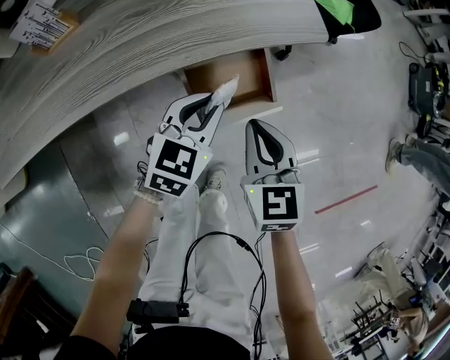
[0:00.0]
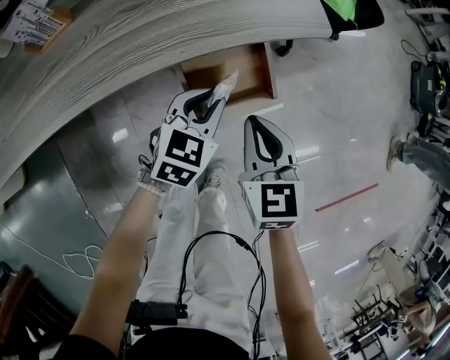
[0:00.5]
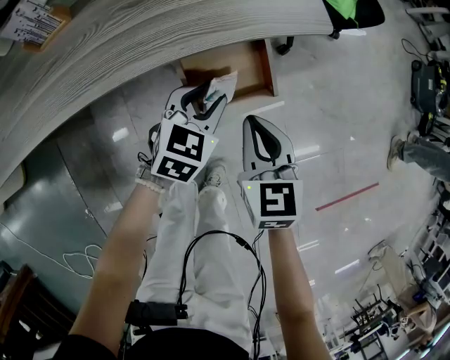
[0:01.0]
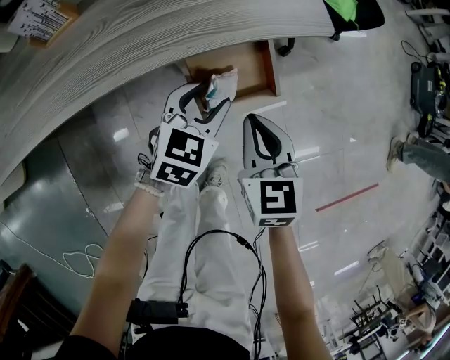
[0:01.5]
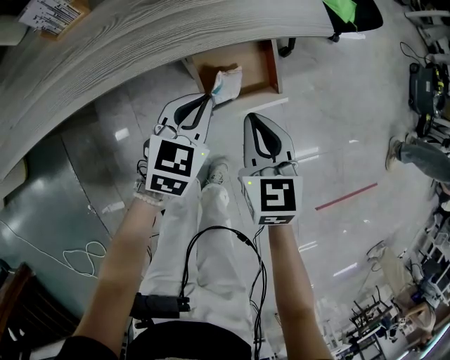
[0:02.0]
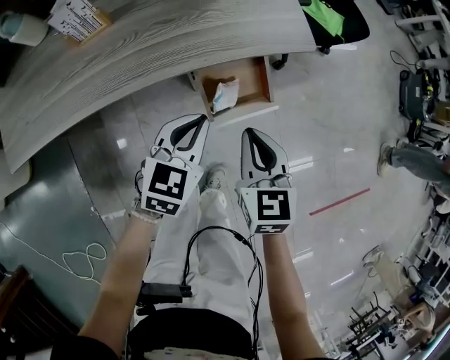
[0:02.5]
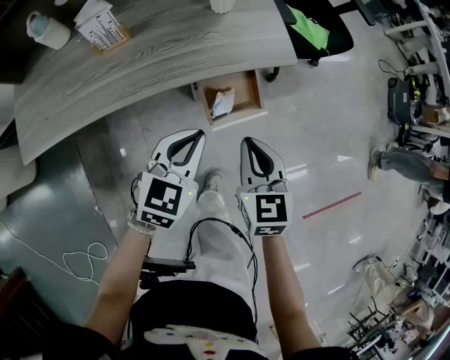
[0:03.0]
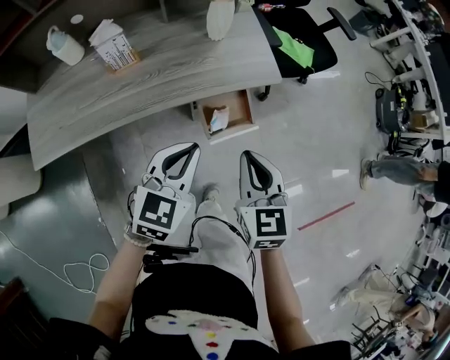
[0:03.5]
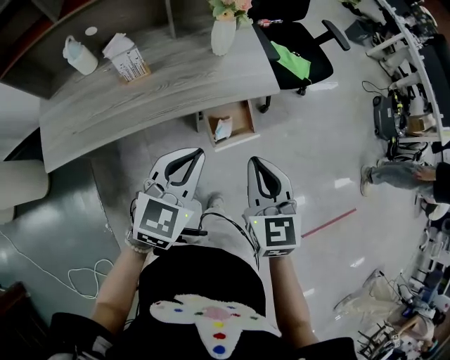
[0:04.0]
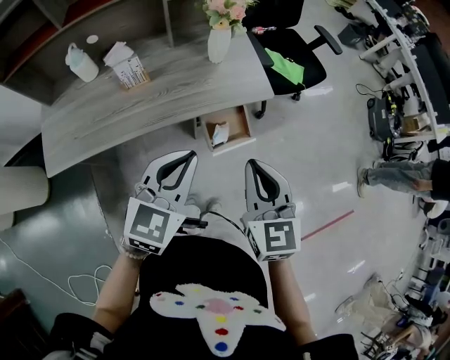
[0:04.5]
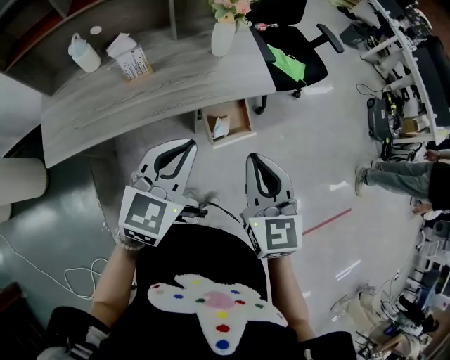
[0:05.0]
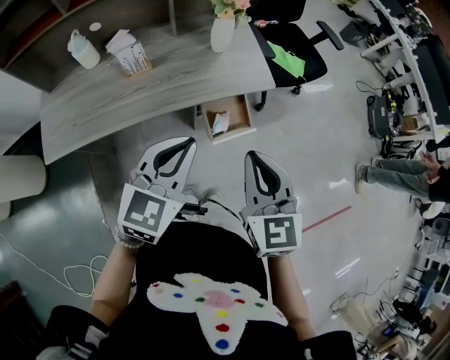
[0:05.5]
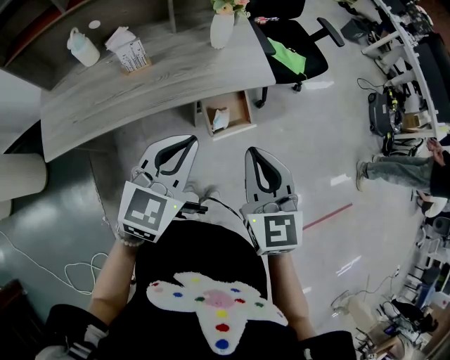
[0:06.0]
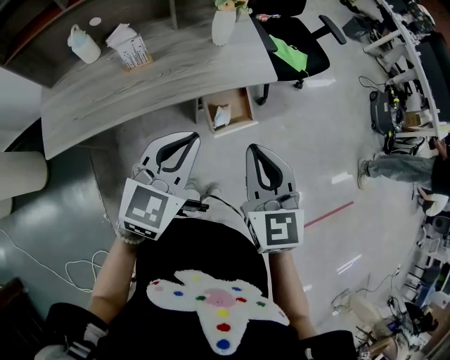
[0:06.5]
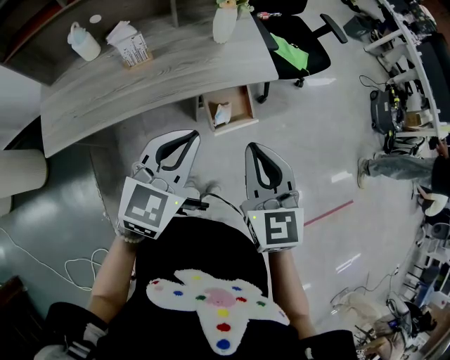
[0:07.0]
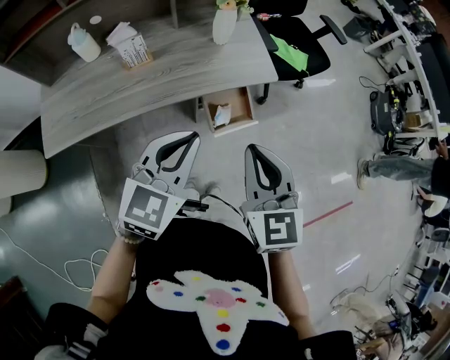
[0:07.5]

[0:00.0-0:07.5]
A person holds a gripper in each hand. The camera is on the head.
0:00.0 to 0:02.0: The left gripper opens, then closes again.
0:02.0 to 0:04.0: Both grippers move upward, approximately 30 cm.
0:04.0 to 0:05.5: The right gripper shifts by about 5 cm.
0:05.5 to 0:07.5: Neither gripper changes place.

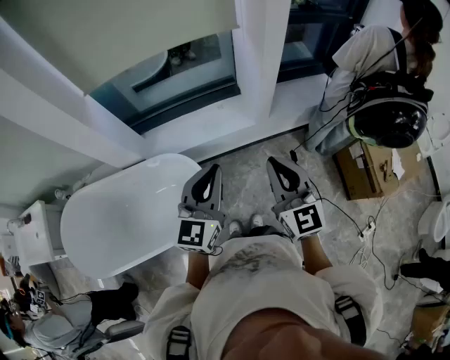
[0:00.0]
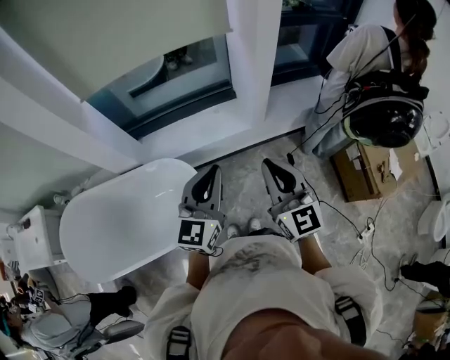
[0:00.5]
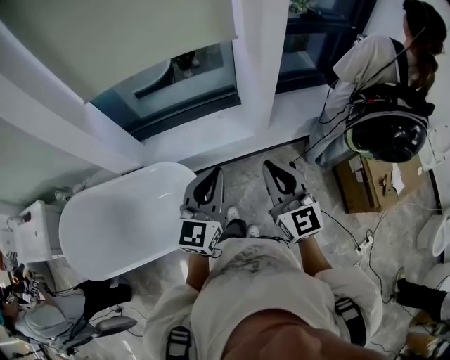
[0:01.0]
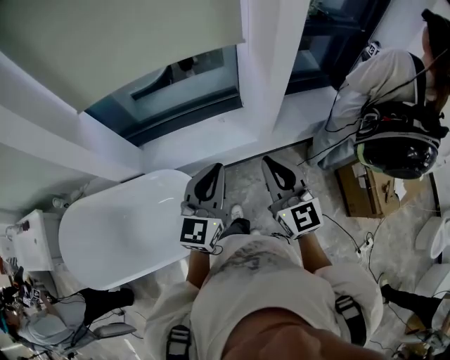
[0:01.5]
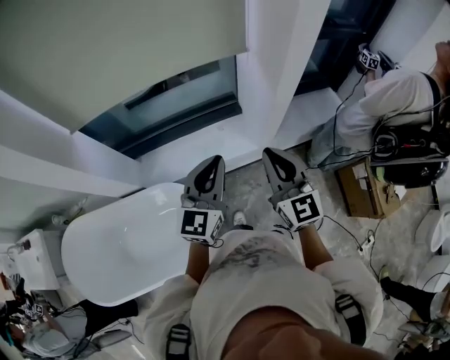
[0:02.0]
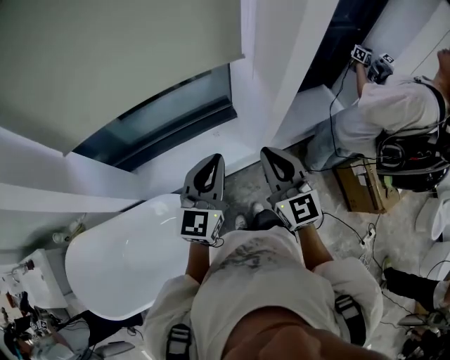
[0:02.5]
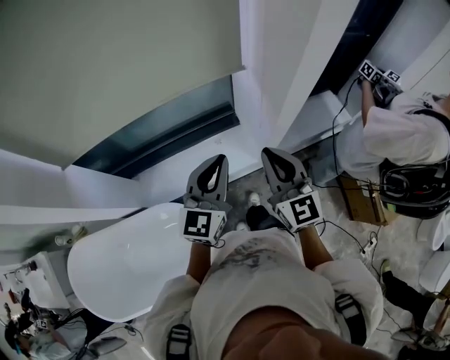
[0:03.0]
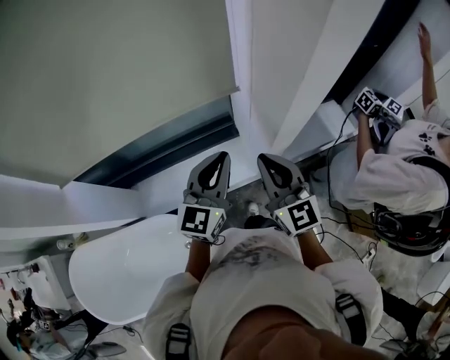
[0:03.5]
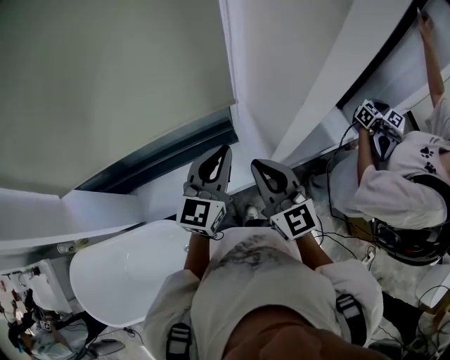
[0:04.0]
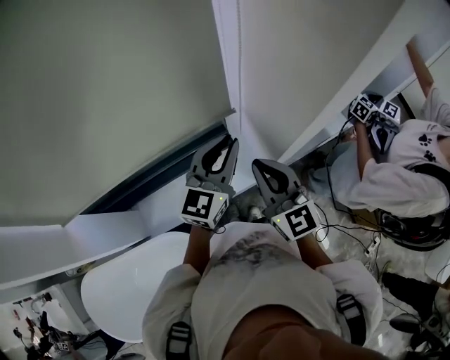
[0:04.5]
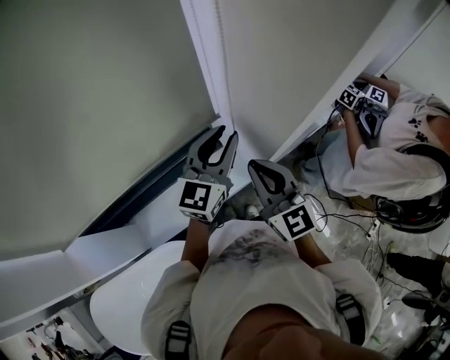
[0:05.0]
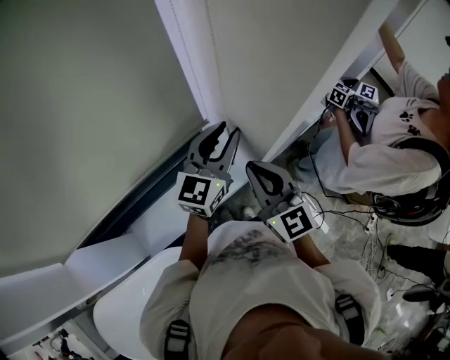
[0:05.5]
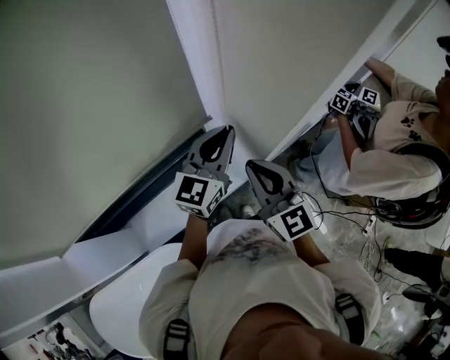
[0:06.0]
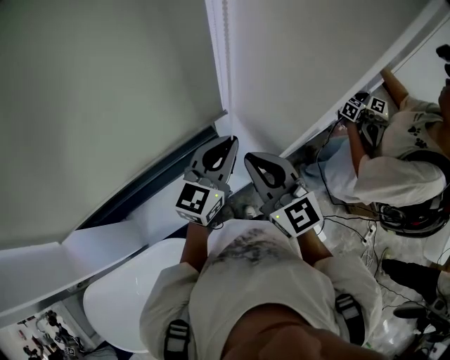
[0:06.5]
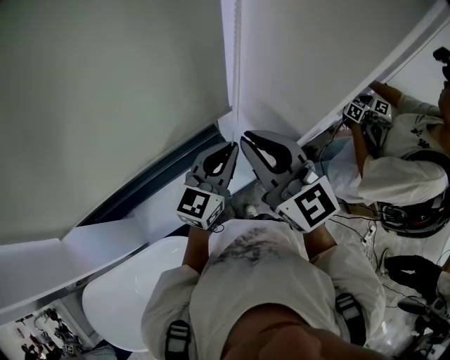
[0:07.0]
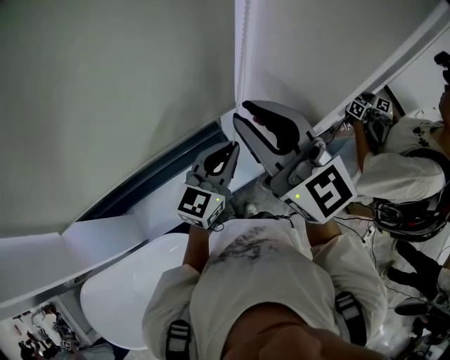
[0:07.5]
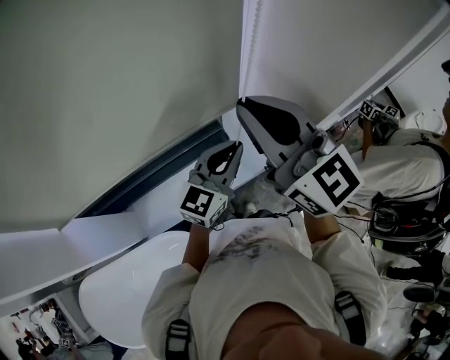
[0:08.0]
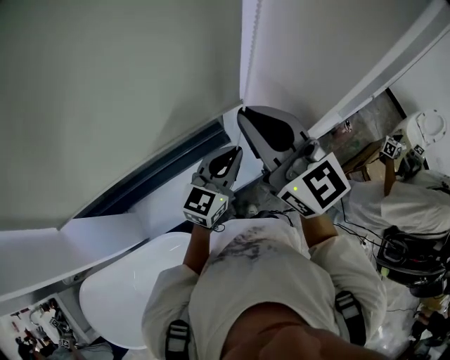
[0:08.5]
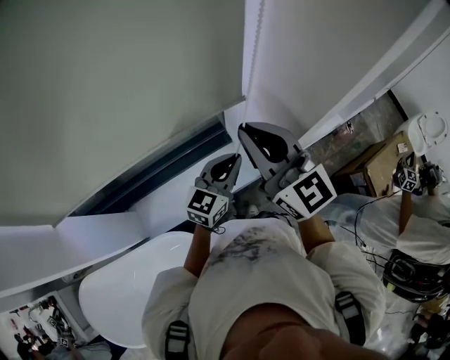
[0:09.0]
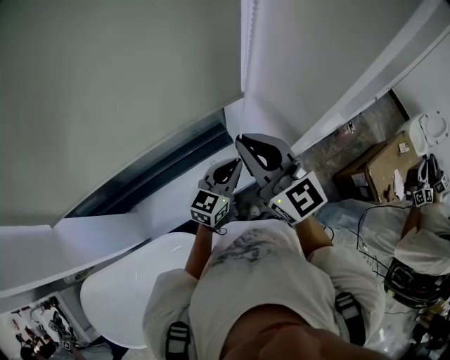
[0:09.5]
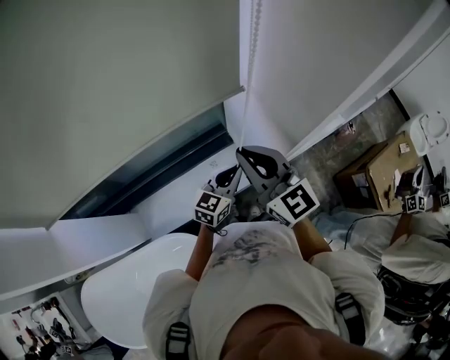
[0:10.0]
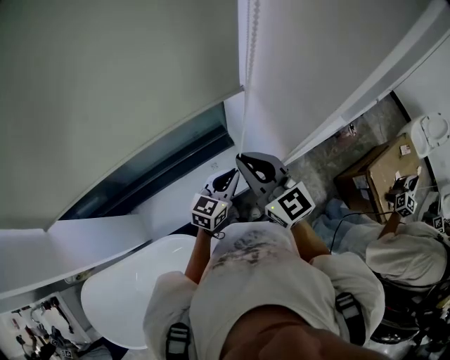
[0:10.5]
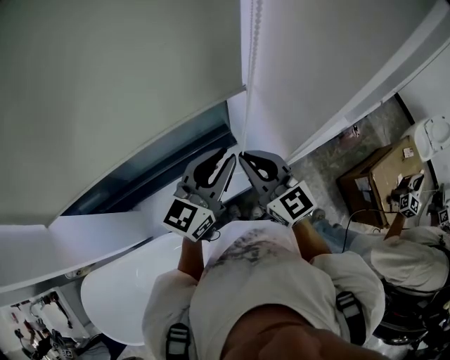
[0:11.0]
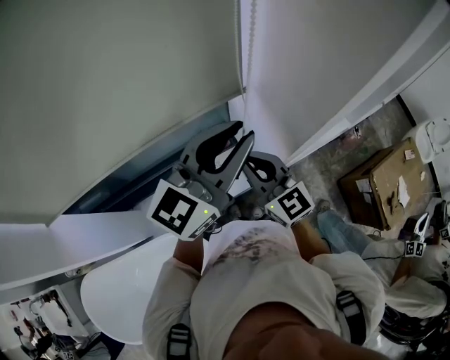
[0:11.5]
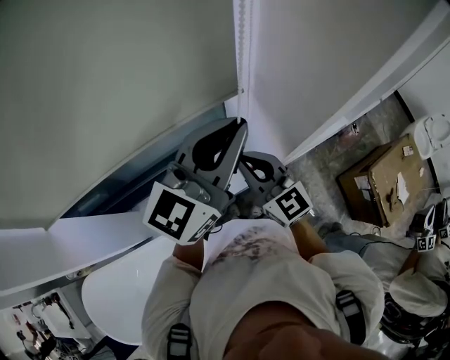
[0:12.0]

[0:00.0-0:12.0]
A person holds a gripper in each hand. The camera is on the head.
0:00.0 to 0:02.0: Both grippers travel together forward, about 20 cm.
0:02.0 to 0:04.0: Both grippers travel together forward, about 25 cm.
0:04.0 to 0:06.0: The left gripper heads forward, covering about 10 cm, rotates about 20 degrees, and opens and closes again.
0:06.0 to 0:08.0: The left gripper is displaced to the left, backward and downward by some 10 cm; the right gripper goes roughly 20 cm upward and to the left.
0:08.0 to 0:10.0: The two grippers go roughly 15 cm downward.
0:10.0 to 0:12.0: The left gripper travels upward by some 35 cm, and rotates some 30 degrees.

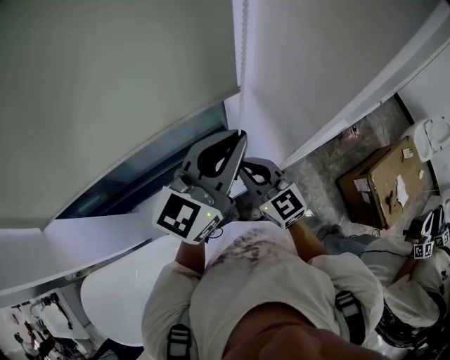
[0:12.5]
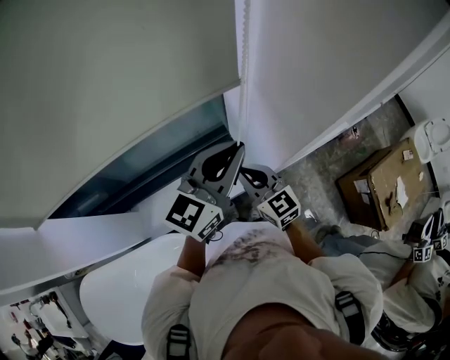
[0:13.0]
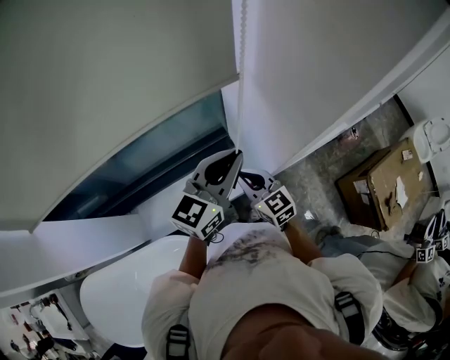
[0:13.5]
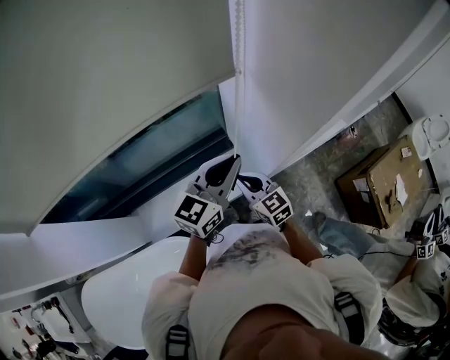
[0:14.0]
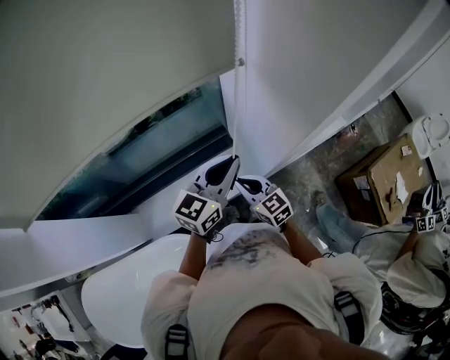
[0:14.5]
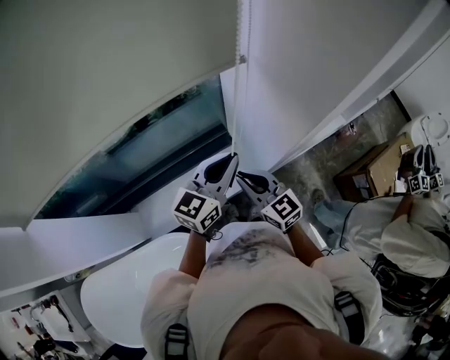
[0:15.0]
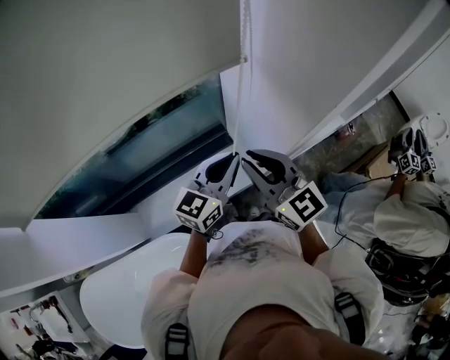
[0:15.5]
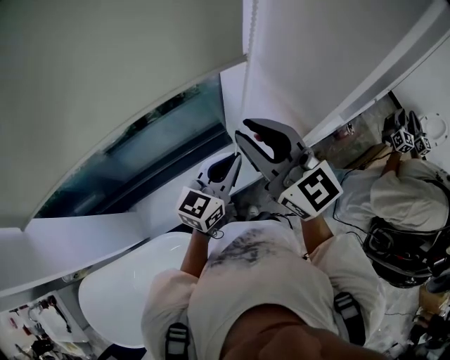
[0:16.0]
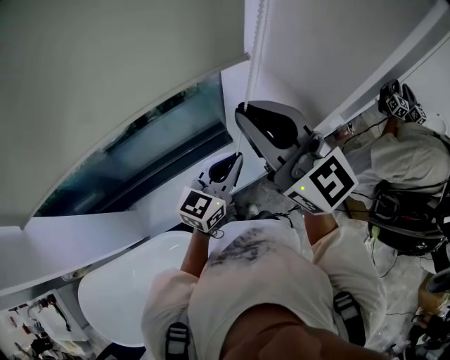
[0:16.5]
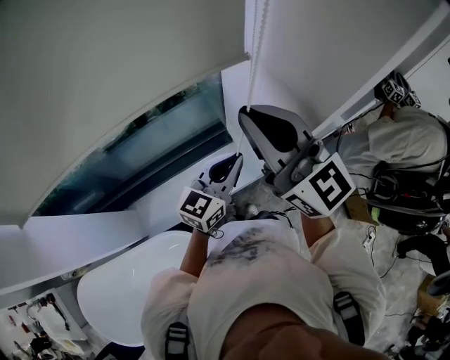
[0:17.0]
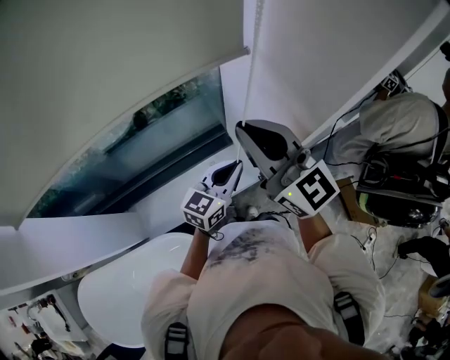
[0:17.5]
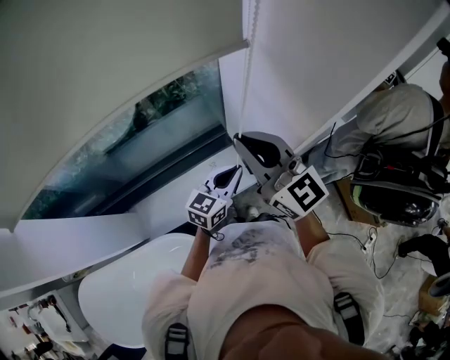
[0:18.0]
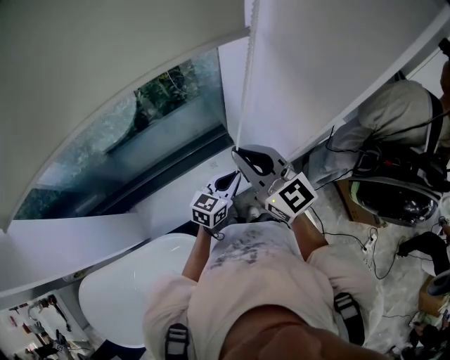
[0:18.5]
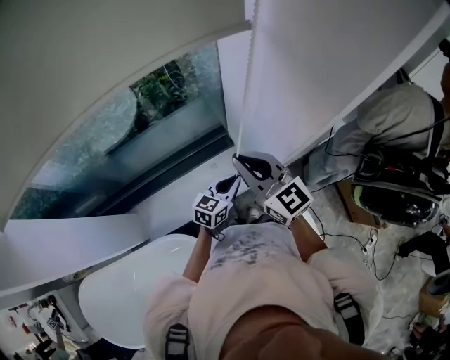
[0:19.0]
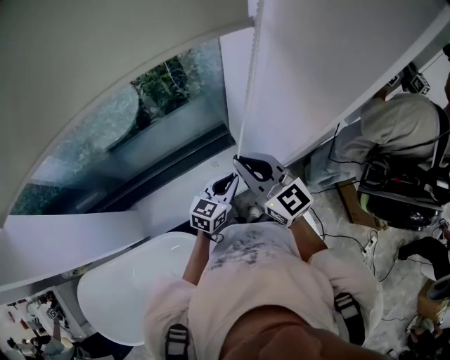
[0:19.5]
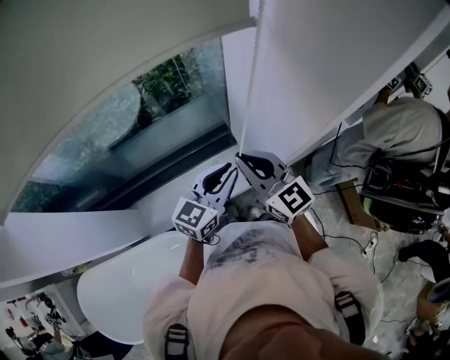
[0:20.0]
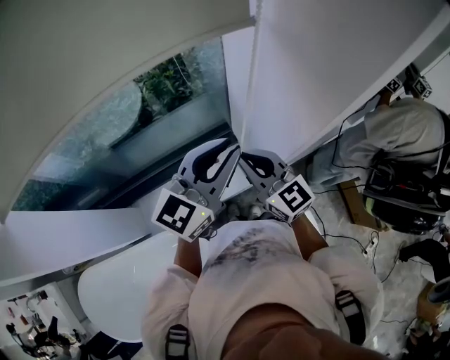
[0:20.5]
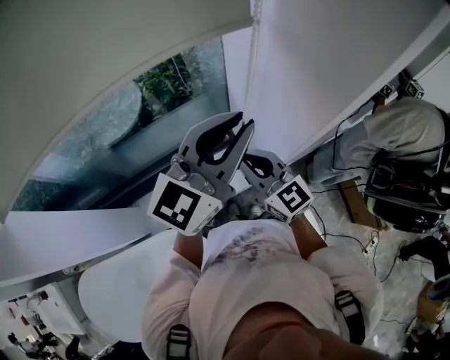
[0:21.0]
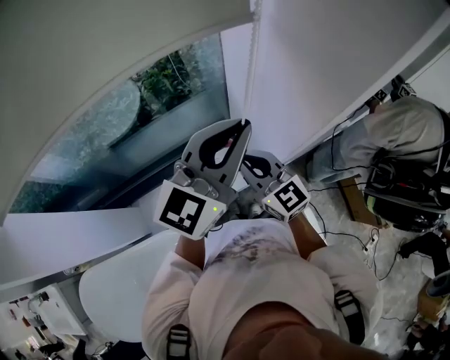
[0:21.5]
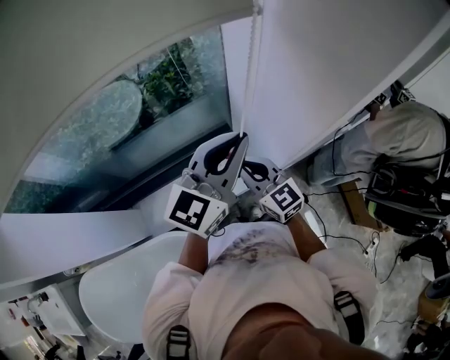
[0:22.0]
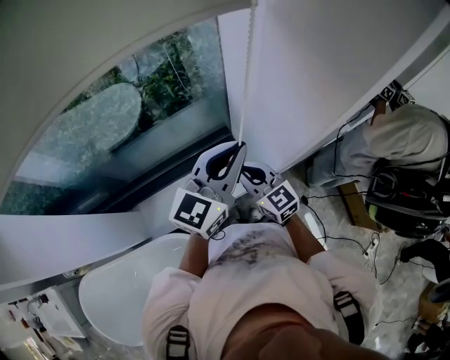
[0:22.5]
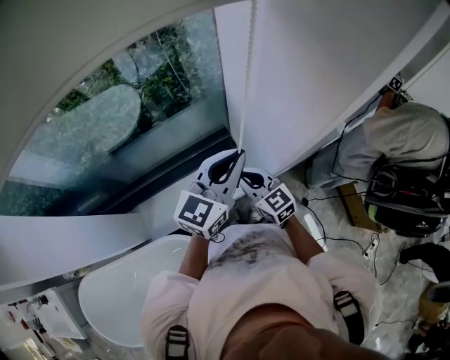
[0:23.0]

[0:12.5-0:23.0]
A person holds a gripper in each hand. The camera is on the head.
0:12.5 to 0:14.5: Both grippers move downward, roughly 15 cm.
0:14.5 to 0:16.5: The right gripper shifts roughly 35 cm upward, and changes its angle by roughly 30 degrees.
0:16.5 to 0:19.0: The grippers both shift downward by approximately 20 cm.
0:19.0 to 0:21.0: The left gripper heads upward, covering about 35 cm, and turns by about 30 degrees.
0:21.0 to 0:23.0: The grippers both shift downward by some 15 cm.
